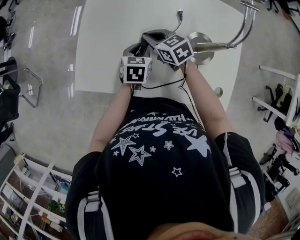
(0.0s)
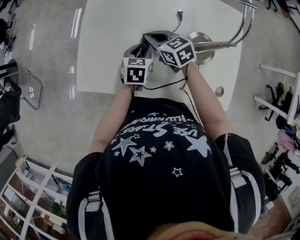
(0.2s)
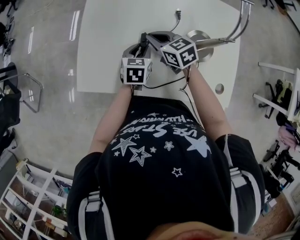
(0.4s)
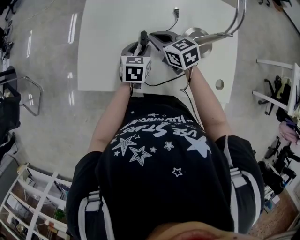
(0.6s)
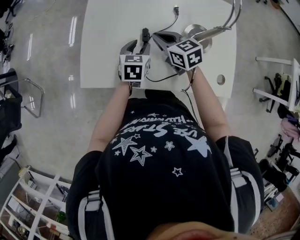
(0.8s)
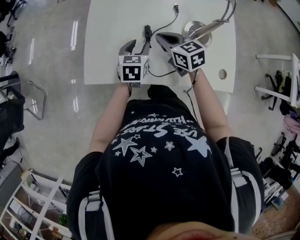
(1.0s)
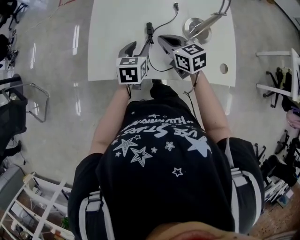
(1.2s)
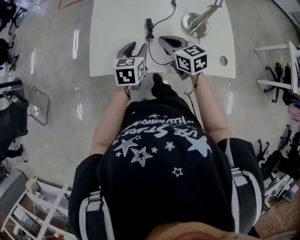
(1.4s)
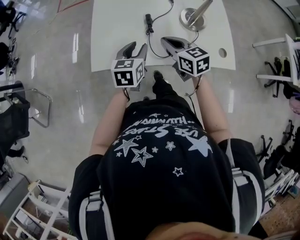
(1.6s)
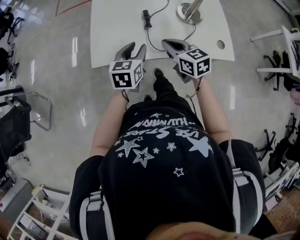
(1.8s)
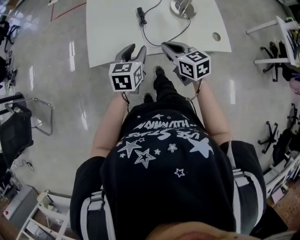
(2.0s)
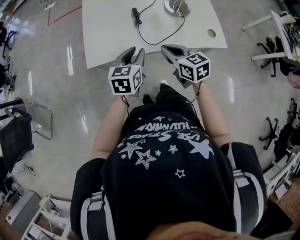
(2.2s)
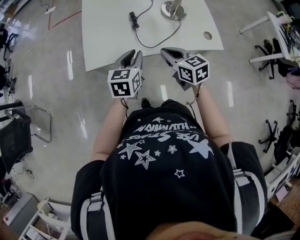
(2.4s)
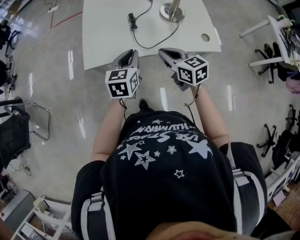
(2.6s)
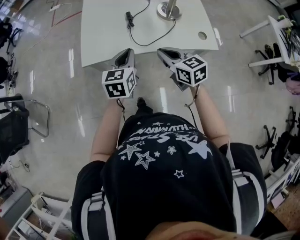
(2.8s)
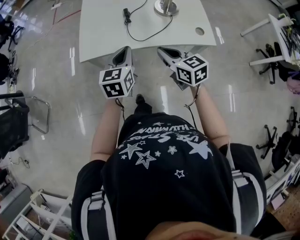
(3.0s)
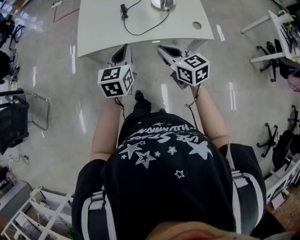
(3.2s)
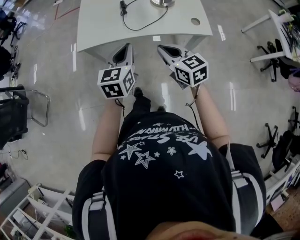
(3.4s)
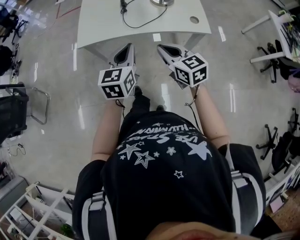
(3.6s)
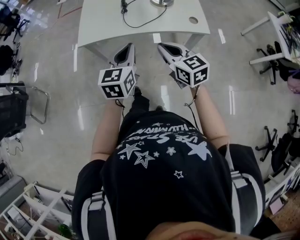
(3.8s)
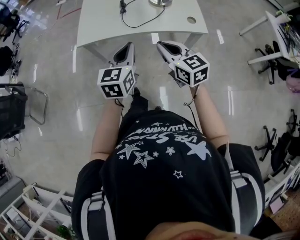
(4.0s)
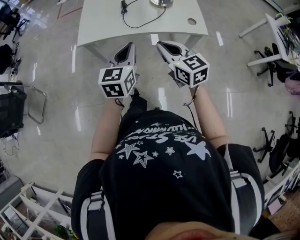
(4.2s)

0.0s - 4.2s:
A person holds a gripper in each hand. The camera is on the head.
0.0s - 1.4s: The right gripper travels backward and upward by roughly 15 cm, and swivels about 20 degrees, while the left gripper goes about 15 cm upward, backward and to the left.
1.4s - 2.8s: The left gripper shifts about 20 cm backward and upward, and closes up. The right gripper is displaced backward by about 20 cm.
2.8s - 4.2s: The two grippers go some 15 cm backward.

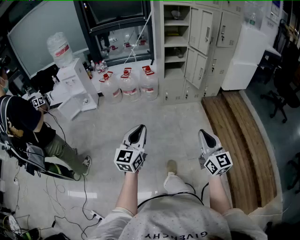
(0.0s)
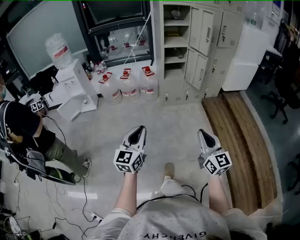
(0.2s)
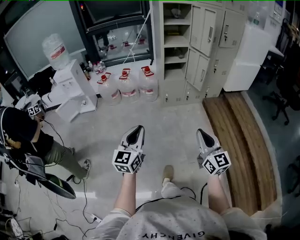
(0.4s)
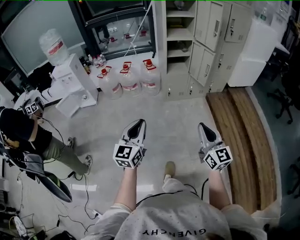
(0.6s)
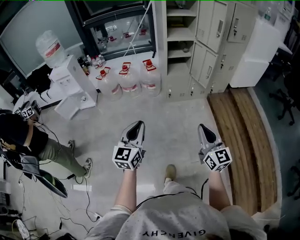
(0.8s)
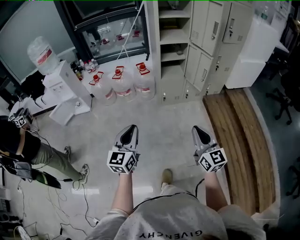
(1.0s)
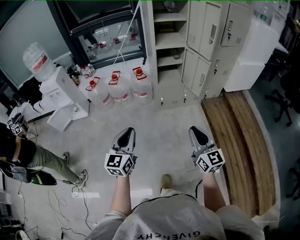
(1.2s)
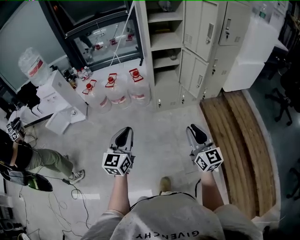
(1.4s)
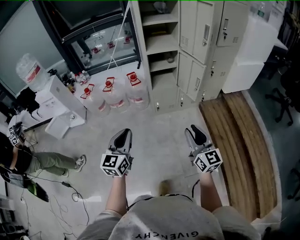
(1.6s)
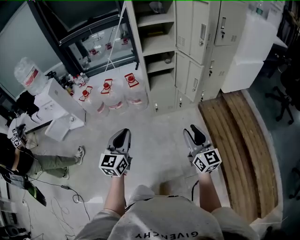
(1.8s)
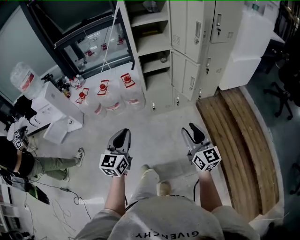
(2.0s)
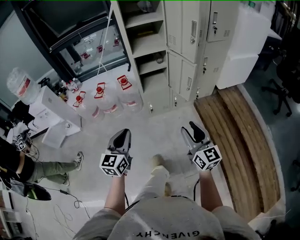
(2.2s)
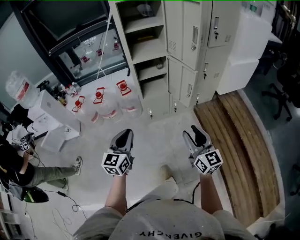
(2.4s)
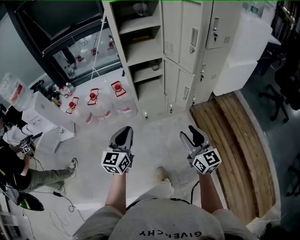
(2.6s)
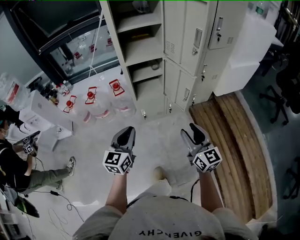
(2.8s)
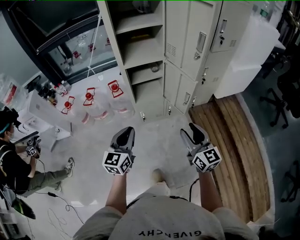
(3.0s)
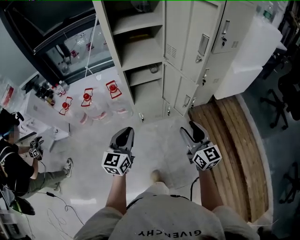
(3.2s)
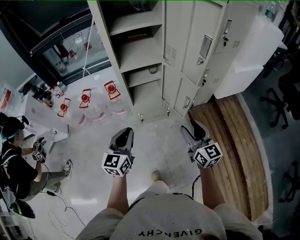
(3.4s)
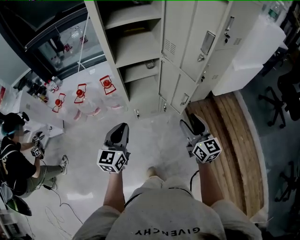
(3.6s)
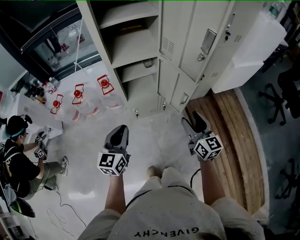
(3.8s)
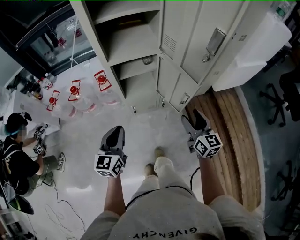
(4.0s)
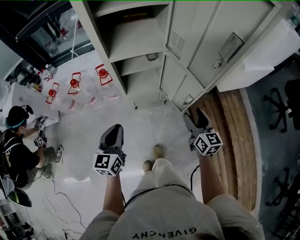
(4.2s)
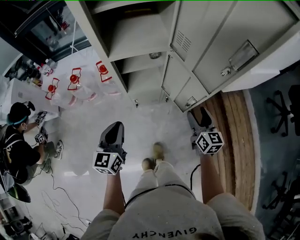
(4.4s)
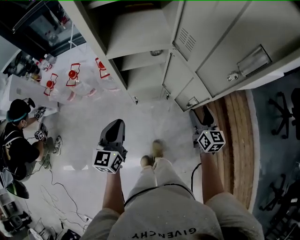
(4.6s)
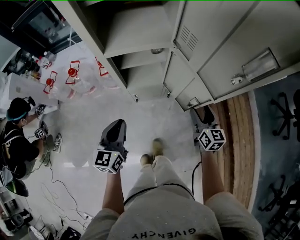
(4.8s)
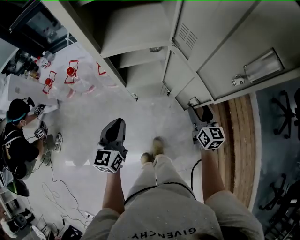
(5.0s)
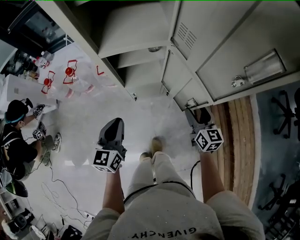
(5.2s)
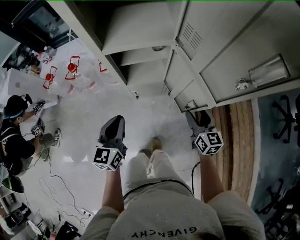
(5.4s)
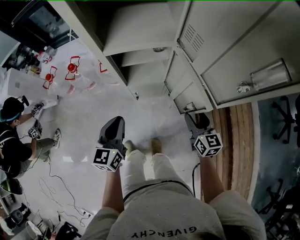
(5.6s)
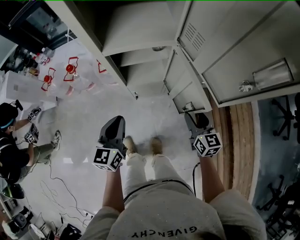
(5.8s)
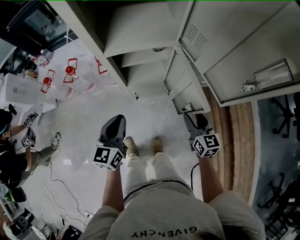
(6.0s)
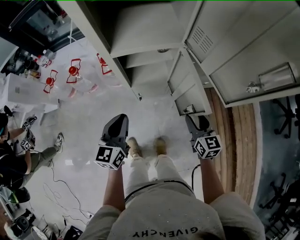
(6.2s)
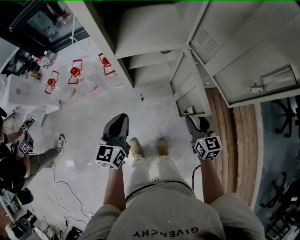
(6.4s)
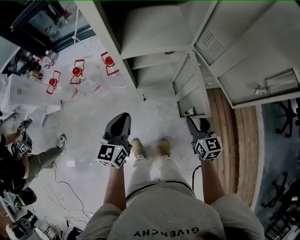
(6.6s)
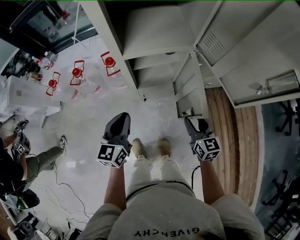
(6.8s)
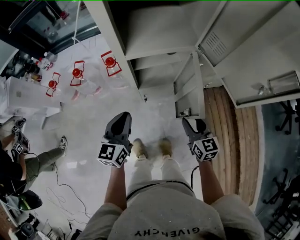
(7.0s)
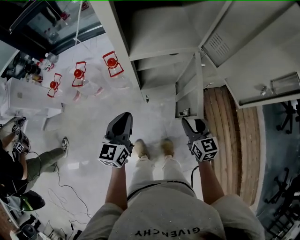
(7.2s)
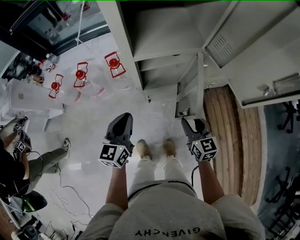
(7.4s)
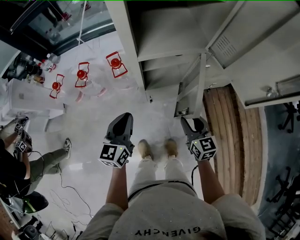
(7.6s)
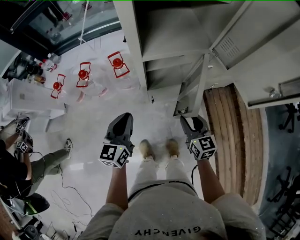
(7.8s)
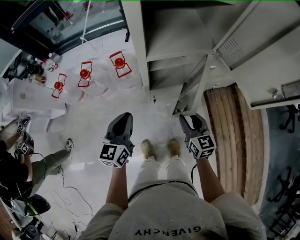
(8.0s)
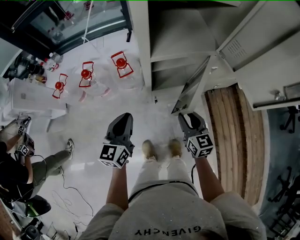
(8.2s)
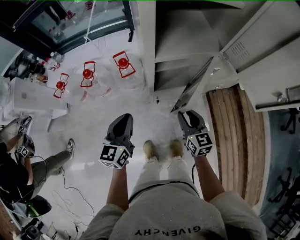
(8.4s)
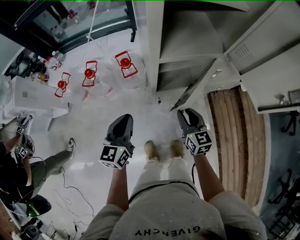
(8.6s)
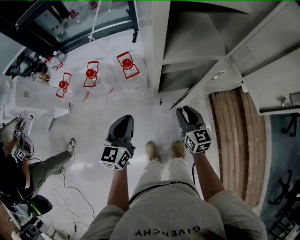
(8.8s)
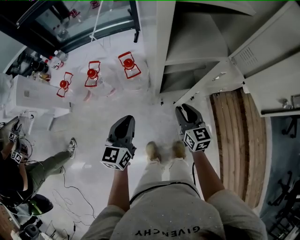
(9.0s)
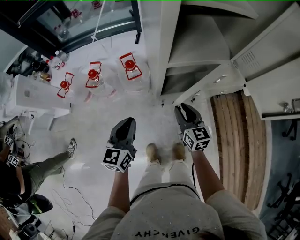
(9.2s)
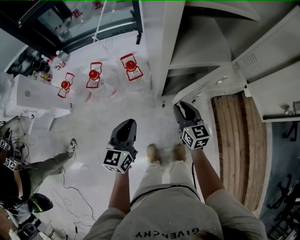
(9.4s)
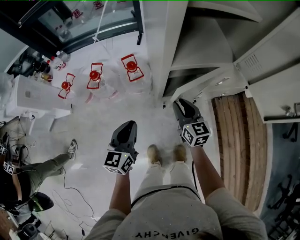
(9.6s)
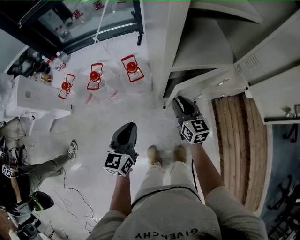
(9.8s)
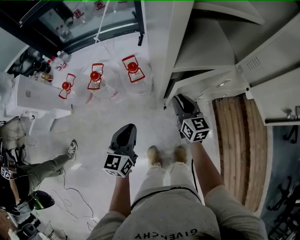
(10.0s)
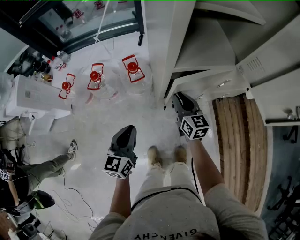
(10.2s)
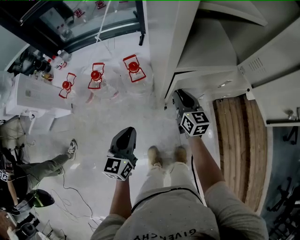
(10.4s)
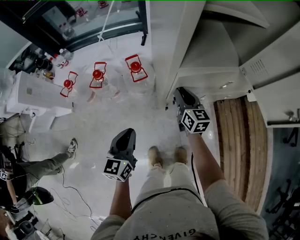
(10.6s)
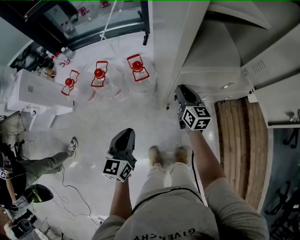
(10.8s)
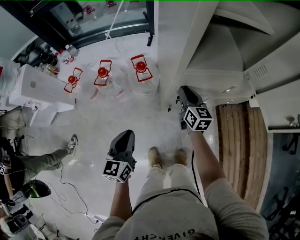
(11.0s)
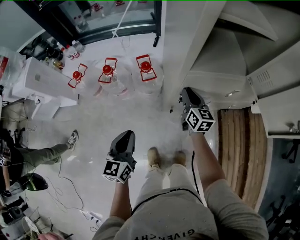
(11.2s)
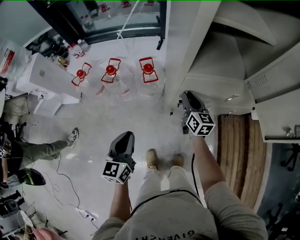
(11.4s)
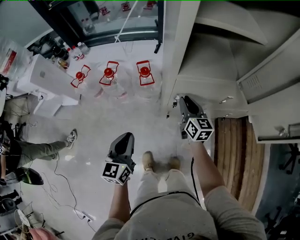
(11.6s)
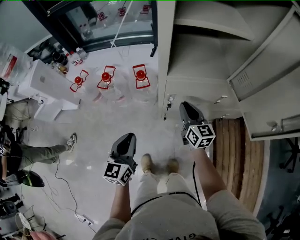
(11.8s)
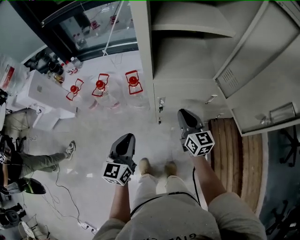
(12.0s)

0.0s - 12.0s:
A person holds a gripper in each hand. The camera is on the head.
0.0s - 1.6s: Both grippers travel together forward, approximately 35 cm. The right gripper opens its fingers.
1.6s - 3.0s: The left gripper is displaced forward and to the right by roughly 25 cm; the right gripper shifts some 20 cm forward.
3.0s - 4.4s: The left gripper heads forward and downward, covering some 20 cm. Meanwhile the right gripper travels forward and downward by roughly 30 cm, and opens up.
4.4s - 6.0s: The right gripper travels downward by about 5 cm. Meanwhile the left gripper goes roughly 5 cm forward.
6.0s - 7.6s: Both grippers travel together to the left, approximately 15 cm.
7.6s - 9.0s: The left gripper travels to the left by some 10 cm. The right gripper goes approximately 15 cm to the left and forward.
9.0s - 10.4s: The right gripper shifts some 10 cm forward.
10.4s - 12.0s: The right gripper moves to the right, upward and backward, approximately 15 cm. Meanwhile the left gripper heads to the right and upward, covering about 10 cm.

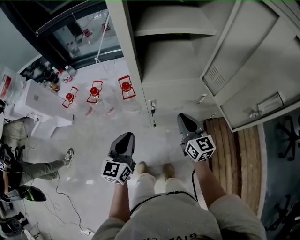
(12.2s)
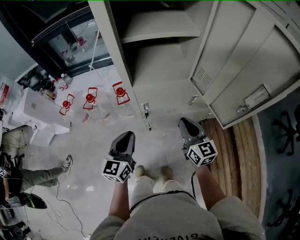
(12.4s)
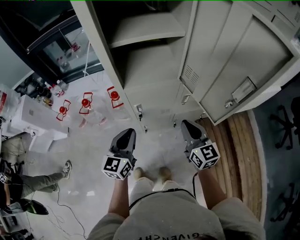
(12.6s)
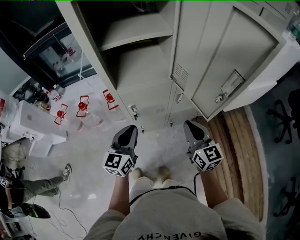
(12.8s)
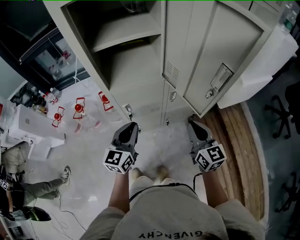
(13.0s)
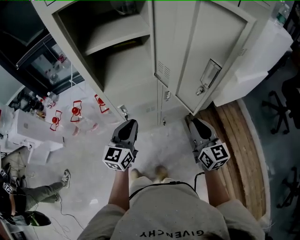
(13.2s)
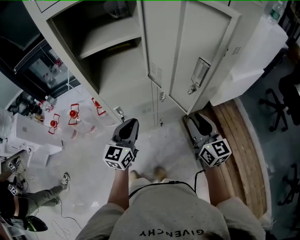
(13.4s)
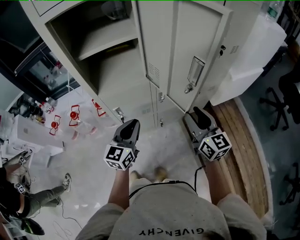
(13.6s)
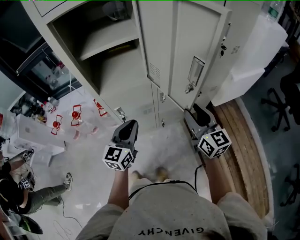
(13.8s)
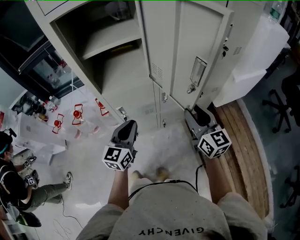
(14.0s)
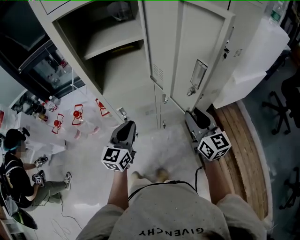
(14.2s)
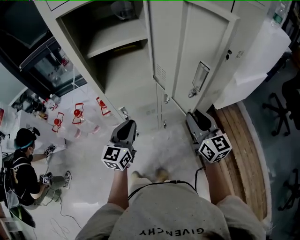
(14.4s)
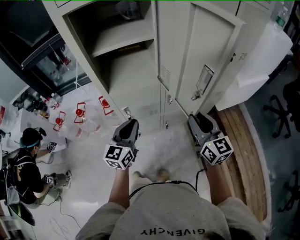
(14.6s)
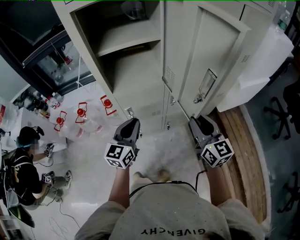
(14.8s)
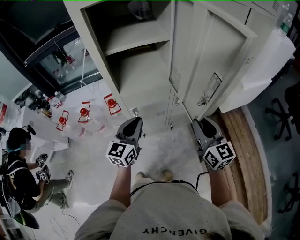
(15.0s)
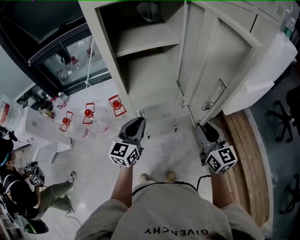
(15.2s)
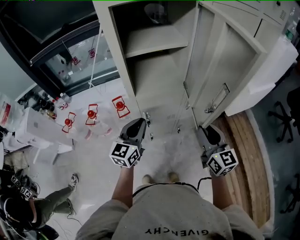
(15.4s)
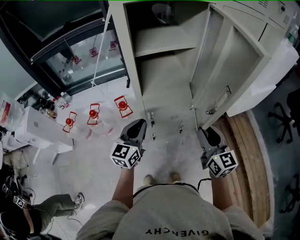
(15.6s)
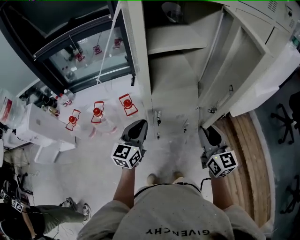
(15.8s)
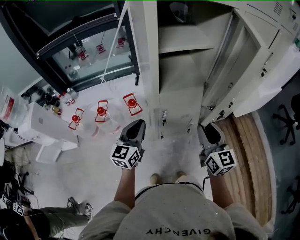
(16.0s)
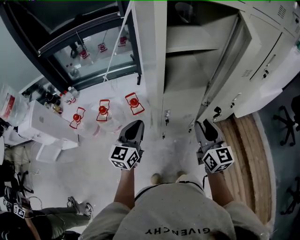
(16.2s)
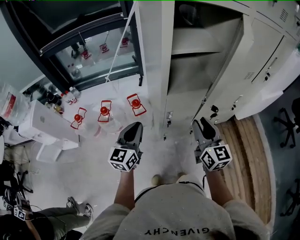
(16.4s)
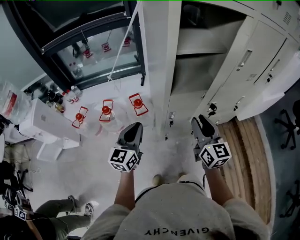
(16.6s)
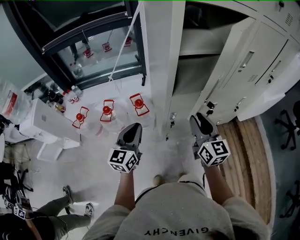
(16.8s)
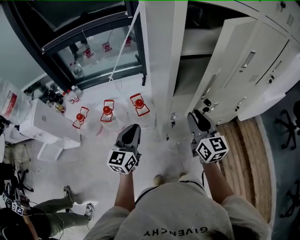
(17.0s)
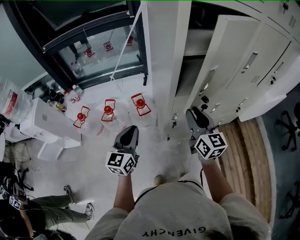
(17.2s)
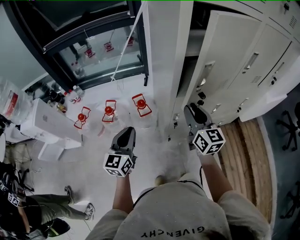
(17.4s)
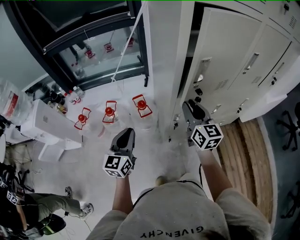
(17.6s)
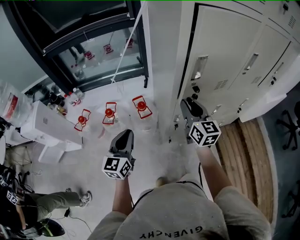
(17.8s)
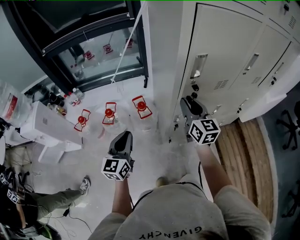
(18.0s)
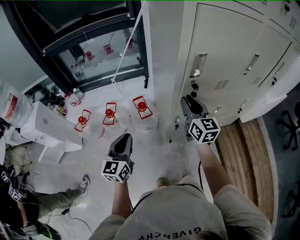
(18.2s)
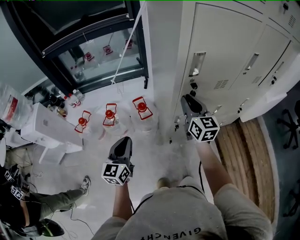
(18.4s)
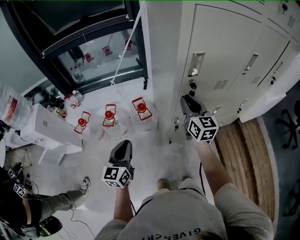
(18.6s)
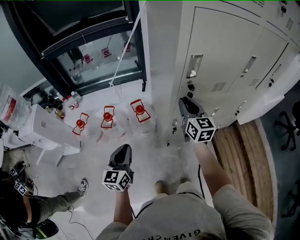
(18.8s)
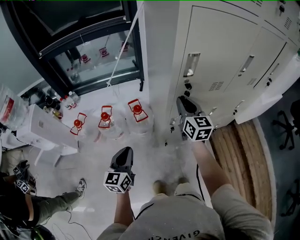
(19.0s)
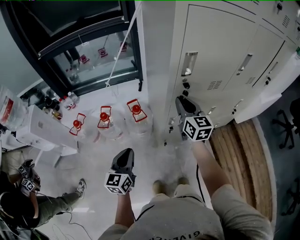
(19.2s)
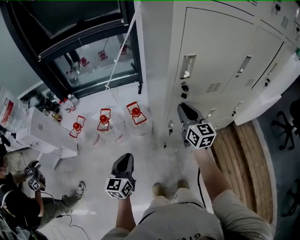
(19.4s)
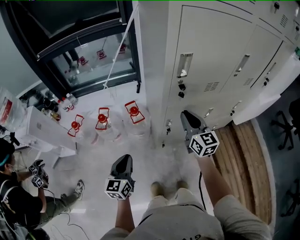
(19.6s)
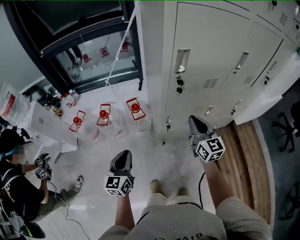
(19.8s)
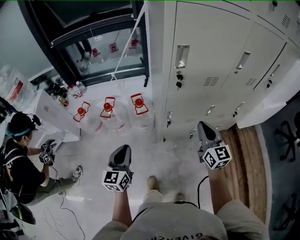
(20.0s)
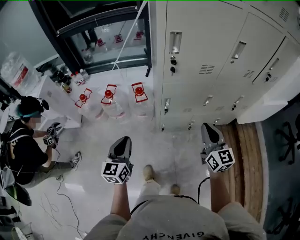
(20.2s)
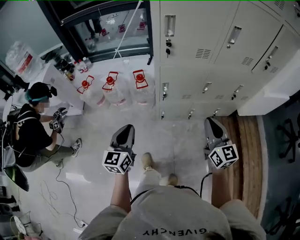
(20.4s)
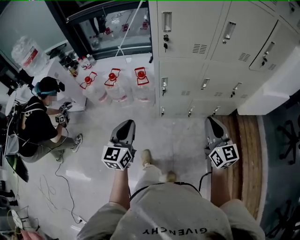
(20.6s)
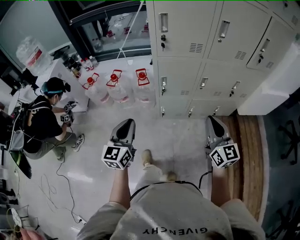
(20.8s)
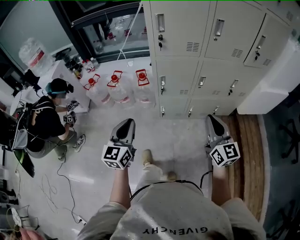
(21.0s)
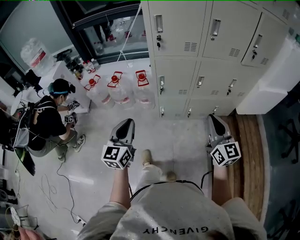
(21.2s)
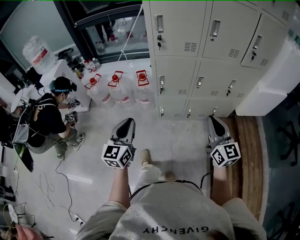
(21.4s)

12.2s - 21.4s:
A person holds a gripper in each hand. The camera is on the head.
12.2s - 13.8s: The left gripper goes roughly 20 cm to the right, while the right gripper heads to the right and upward, covering some 25 cm, and opens.
13.8s - 15.2s: Both grippers move to the left, about 10 cm.
15.2s - 16.8s: The grippers both shift to the left by roughly 20 cm.
16.8s - 18.4s: The right gripper goes roughly 10 cm forward and to the left. Meanwhile the left gripper goes about 10 cm to the left.
18.4s - 19.8s: The right gripper goes roughly 10 cm backward and to the right; the left gripper heads backward, covering about 5 cm.
19.8s - 21.4s: The two grippers go approximately 35 cm backward and to the right.
